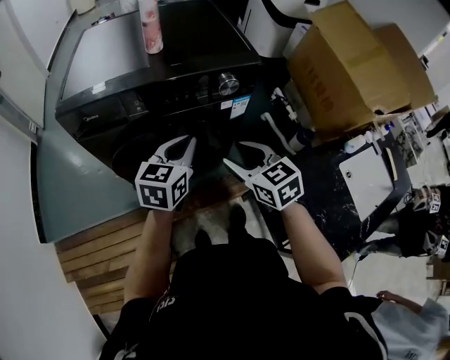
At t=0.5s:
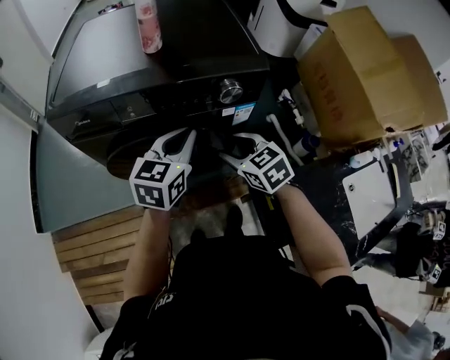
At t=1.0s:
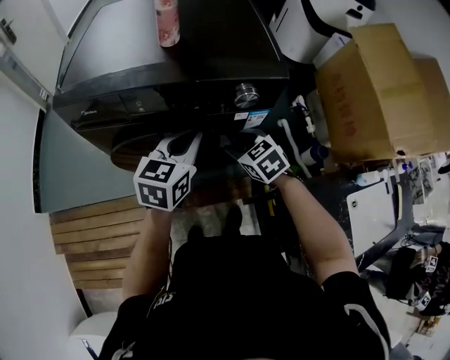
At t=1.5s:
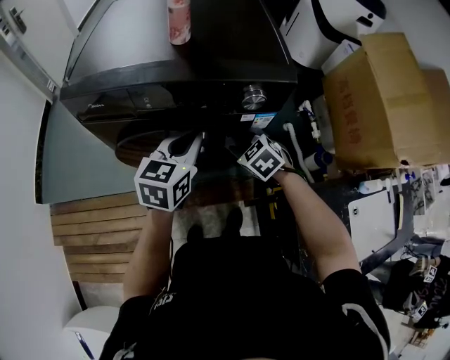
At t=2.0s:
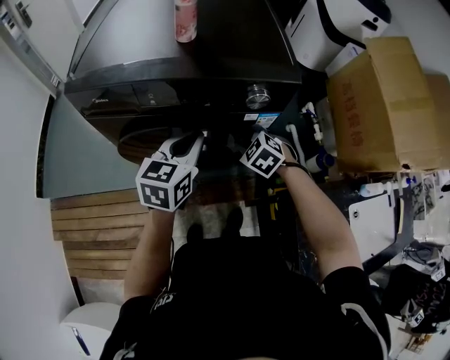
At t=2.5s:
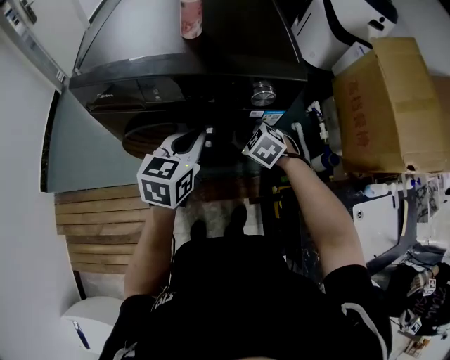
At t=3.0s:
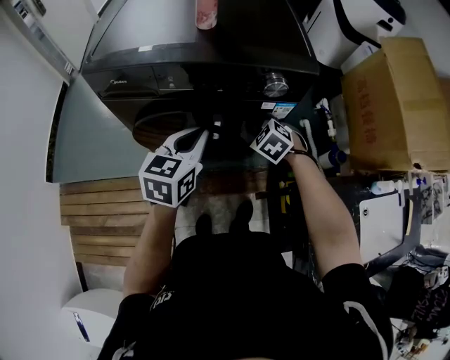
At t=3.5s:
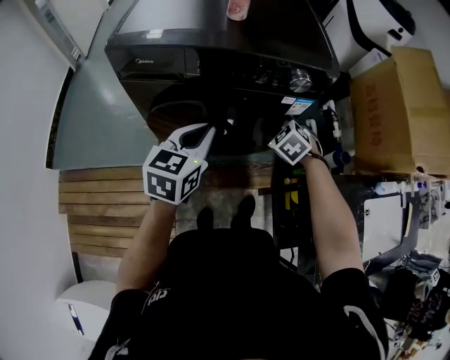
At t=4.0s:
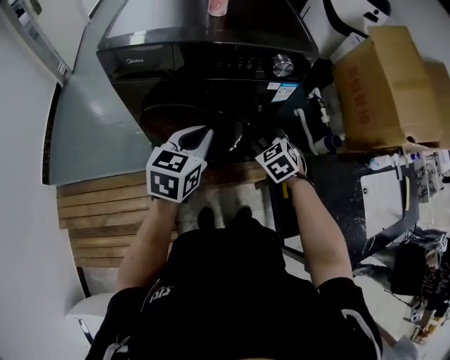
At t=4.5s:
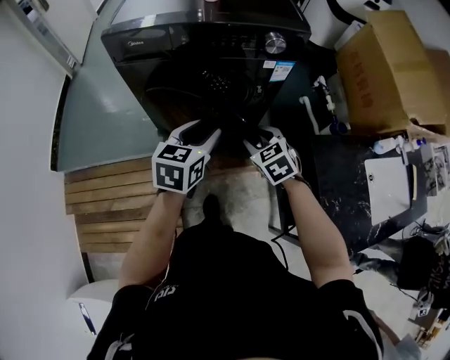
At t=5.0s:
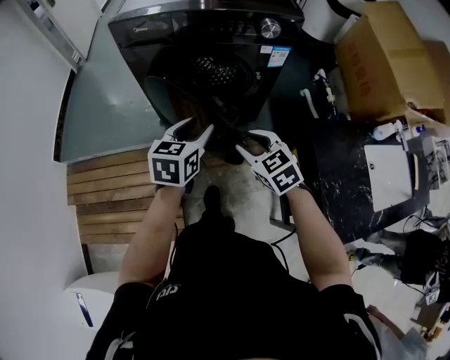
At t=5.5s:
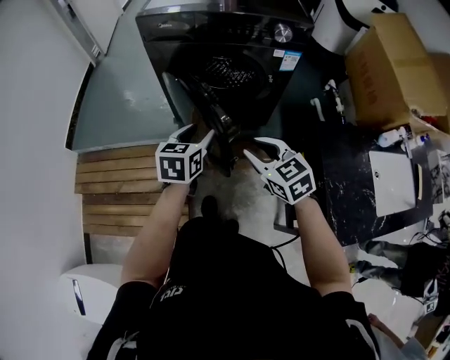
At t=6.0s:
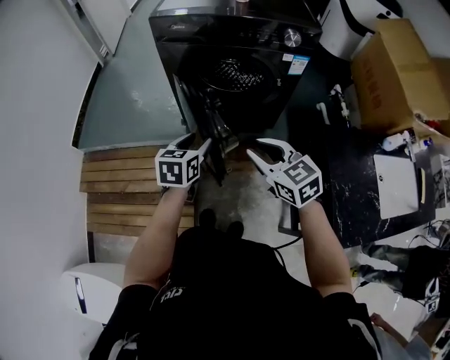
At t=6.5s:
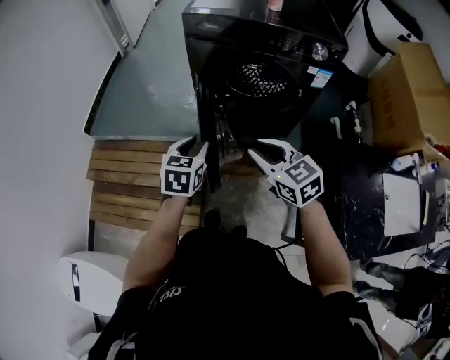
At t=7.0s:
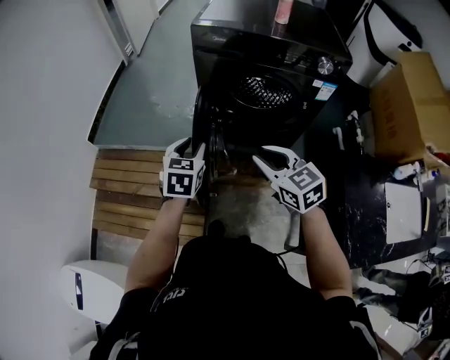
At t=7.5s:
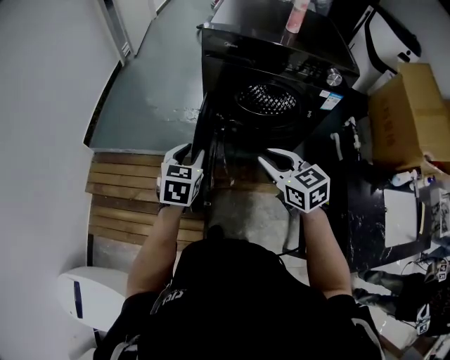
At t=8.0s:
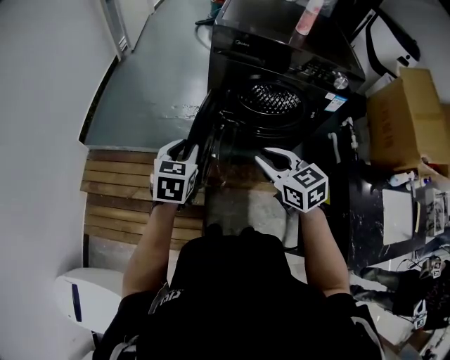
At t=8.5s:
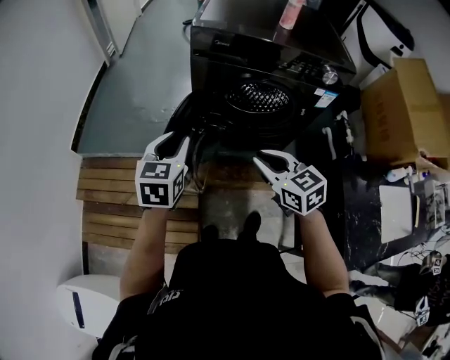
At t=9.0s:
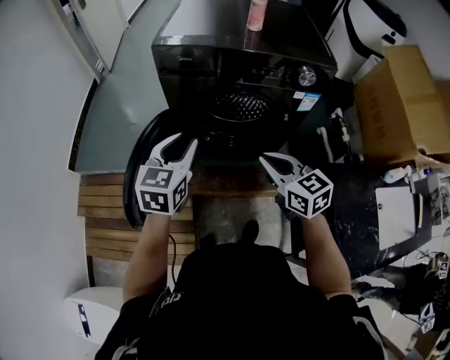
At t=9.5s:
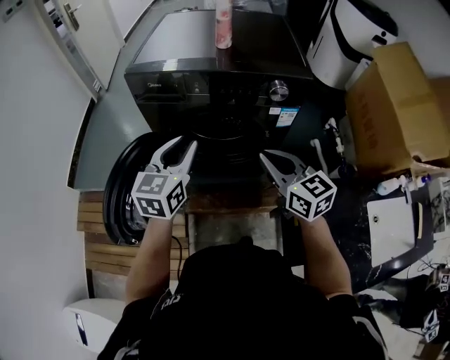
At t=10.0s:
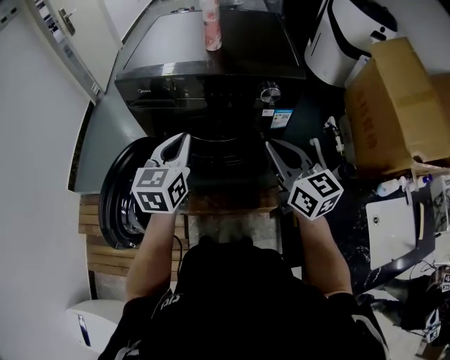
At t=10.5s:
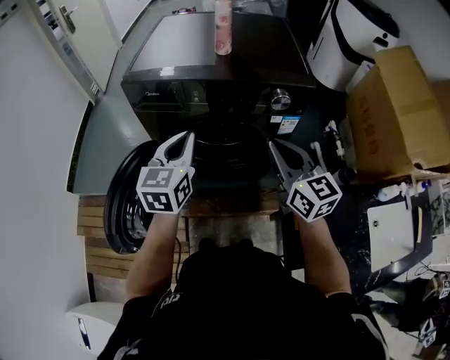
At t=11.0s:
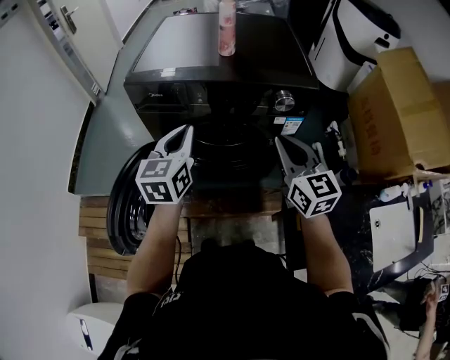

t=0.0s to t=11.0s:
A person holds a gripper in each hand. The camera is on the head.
t=0.0s to t=2.0s: The right gripper moves forward and downward, about 20 cm, swivels roughly 50 degrees, and closes up.
t=2.0s to t=3.5s: The left gripper heads to the left and backward, covering some 10 cm.
t=3.5s to t=5.5s: The right gripper is displaced backward by about 30 cm, and rotates some 40 degrees. Meanwhile the left gripper shifts about 20 cm backward, and opens.
t=5.5s to t=7.5s: The right gripper moves to the left and forward, about 15 cm; the left gripper heads to the left, covering about 20 cm.
t=7.5s to t=9.0s: The right gripper travels to the right by some 10 cm; the left gripper moves to the right, upward and forward, about 15 cm.
t=9.0s to t=11.0s: The left gripper travels forward and to the right by some 15 cm, and closes, while the right gripper shifts approximately 20 cm to the right, forward and upward, and rotates about 20 degrees.

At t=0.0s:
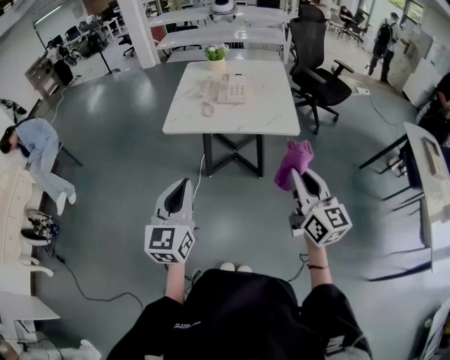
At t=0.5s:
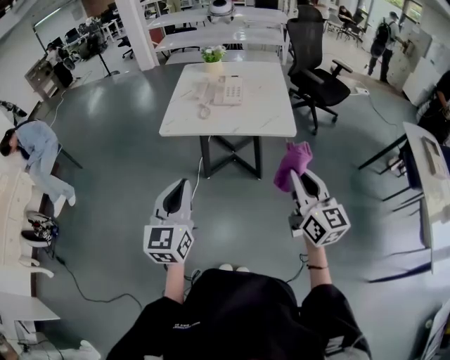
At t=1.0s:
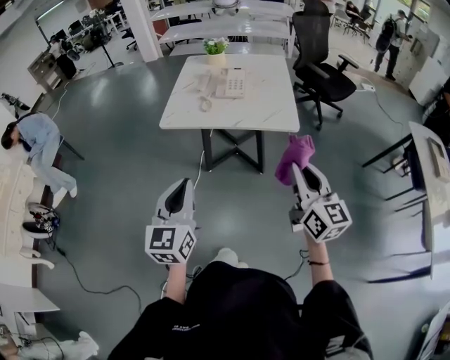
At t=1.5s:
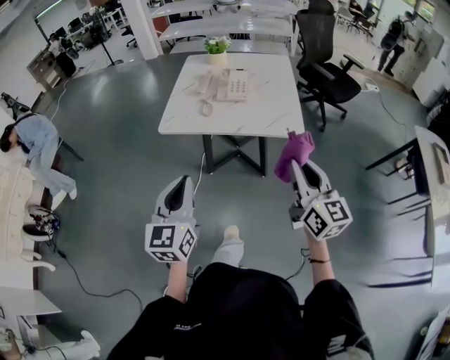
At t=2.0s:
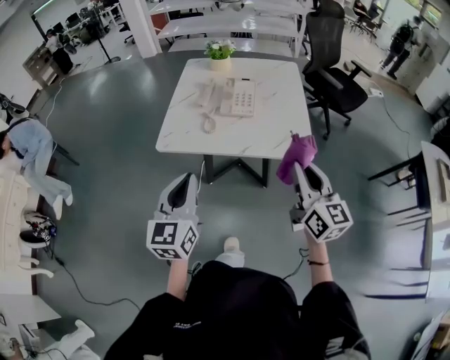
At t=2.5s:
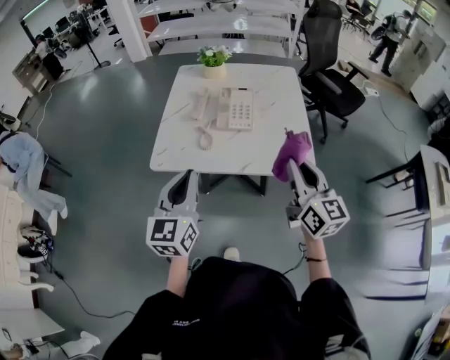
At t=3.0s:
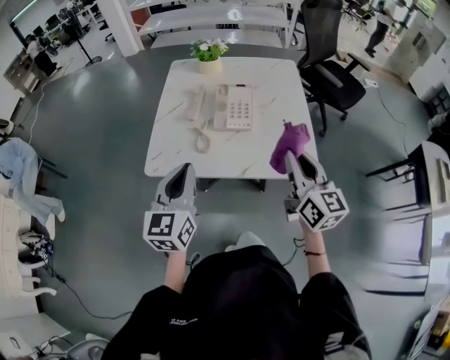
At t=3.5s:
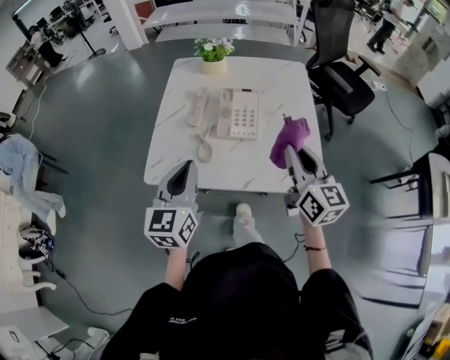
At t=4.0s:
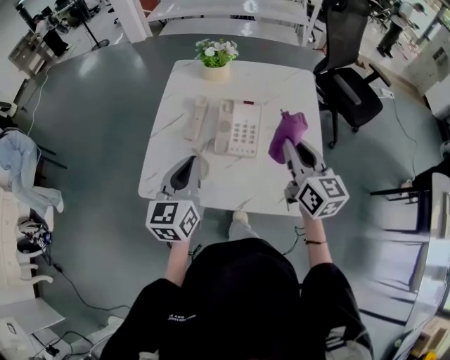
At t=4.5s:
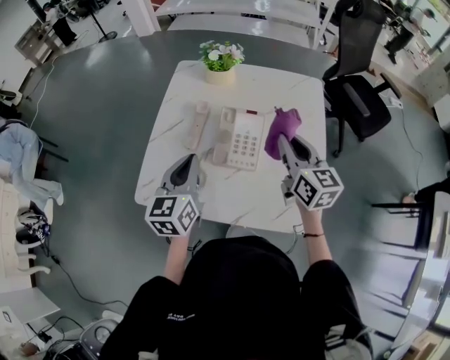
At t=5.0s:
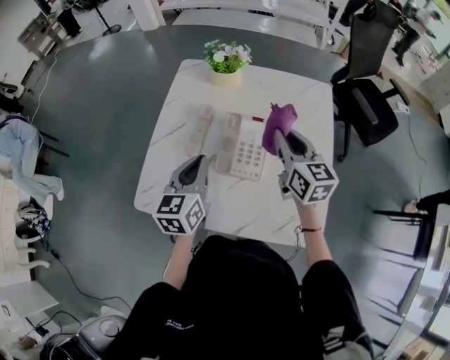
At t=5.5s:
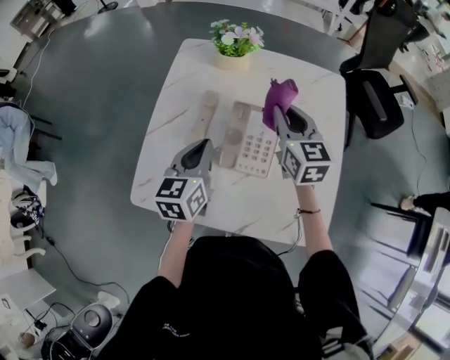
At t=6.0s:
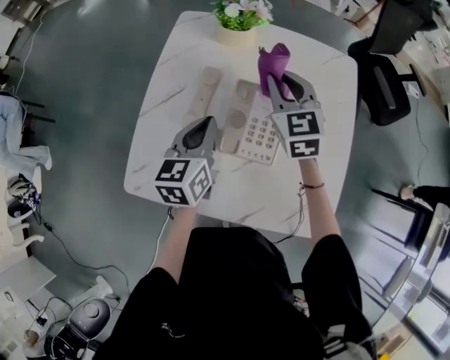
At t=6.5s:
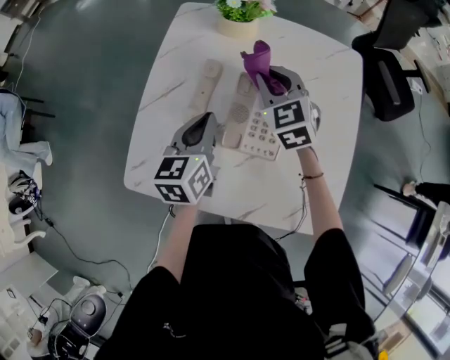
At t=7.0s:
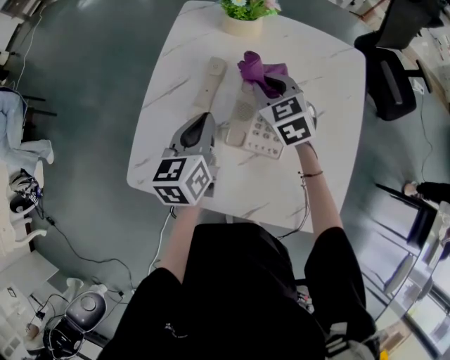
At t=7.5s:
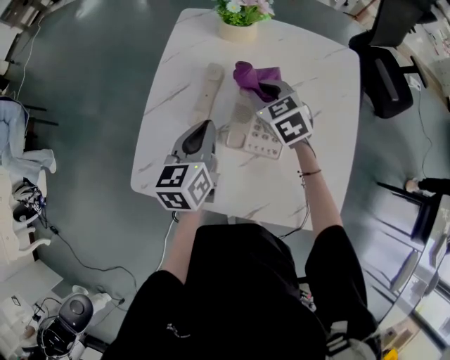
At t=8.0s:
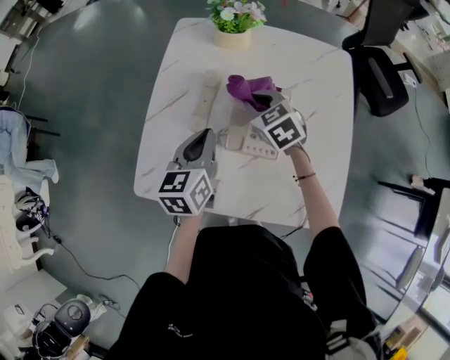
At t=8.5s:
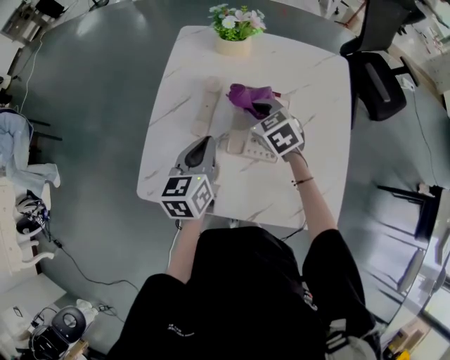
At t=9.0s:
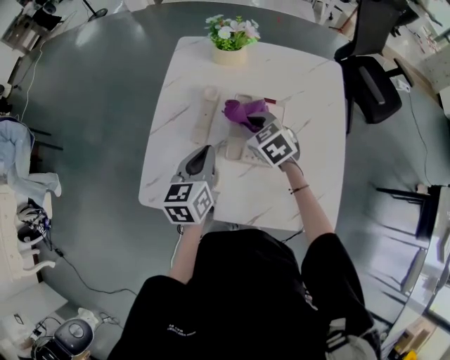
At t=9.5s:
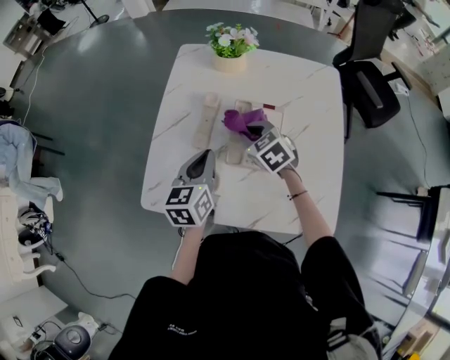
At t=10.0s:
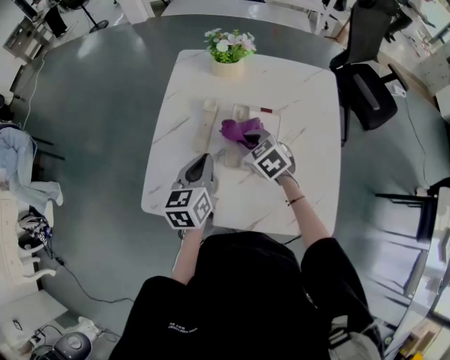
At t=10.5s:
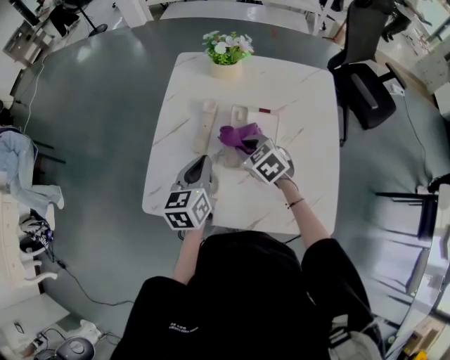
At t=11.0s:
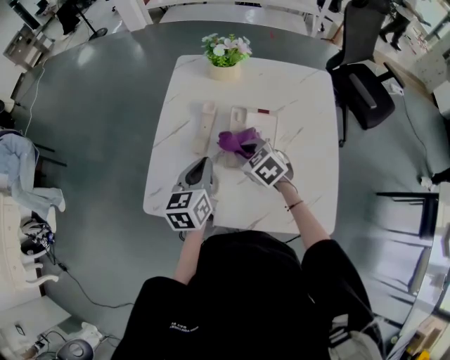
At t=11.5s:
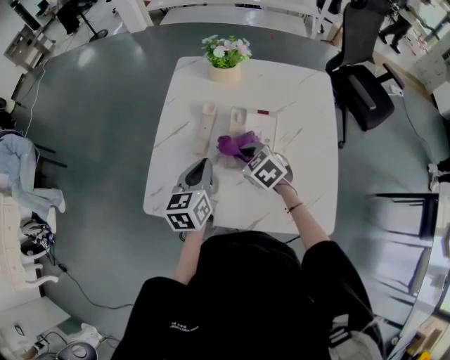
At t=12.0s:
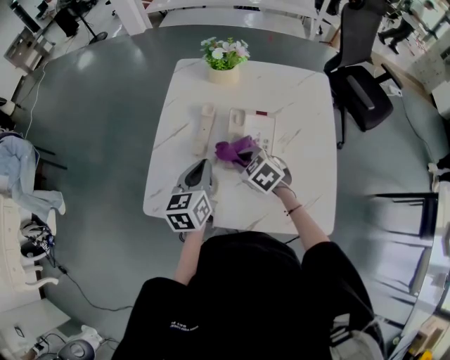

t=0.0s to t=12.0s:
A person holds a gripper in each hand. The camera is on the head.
t=0.0s to t=2.0s: The two grippers go approximately 20 cm forward.
t=2.0s to t=4.0s: Both grippers travel together forward, about 30 cm.
t=4.0s to t=6.0s: The left gripper is displaced forward and downward by roughly 20 cm, while the right gripper travels forward and to the left by some 25 cm, and rotates about 40 degrees.
t=6.0s to t=8.0s: The right gripper travels downward and to the left by some 10 cm, and rotates some 30 degrees.
t=8.0s to t=10.0s: The right gripper heads backward, covering roughly 5 cm.
t=10.0s to t=12.0s: The right gripper moves backward, approximately 5 cm.

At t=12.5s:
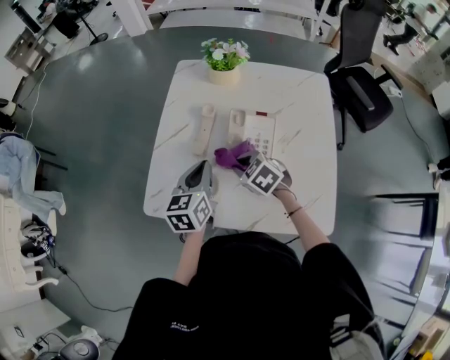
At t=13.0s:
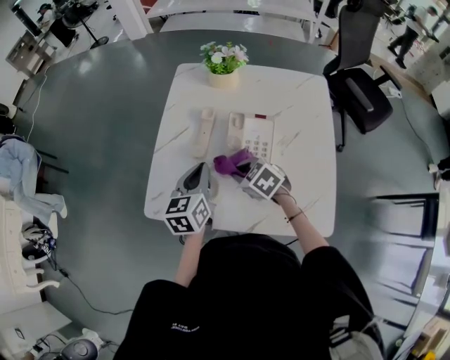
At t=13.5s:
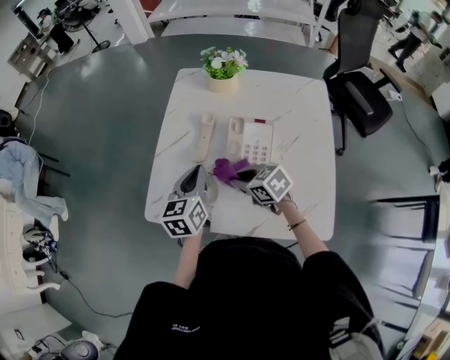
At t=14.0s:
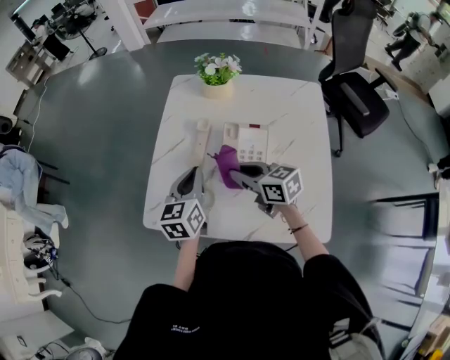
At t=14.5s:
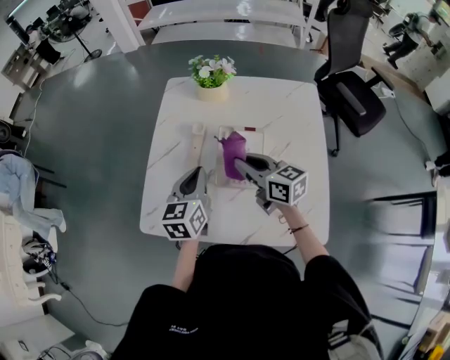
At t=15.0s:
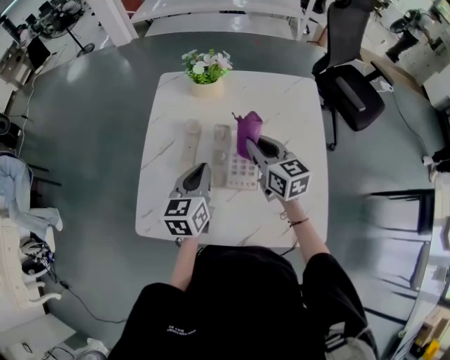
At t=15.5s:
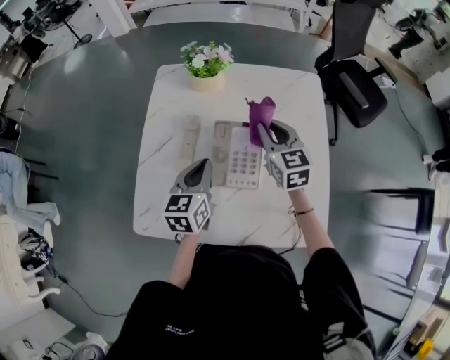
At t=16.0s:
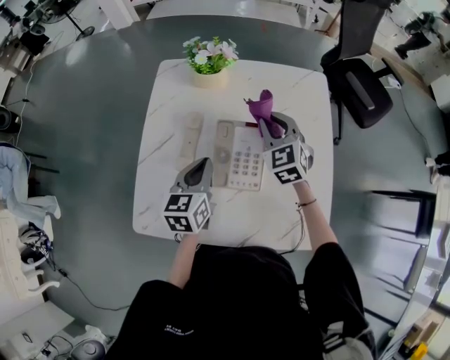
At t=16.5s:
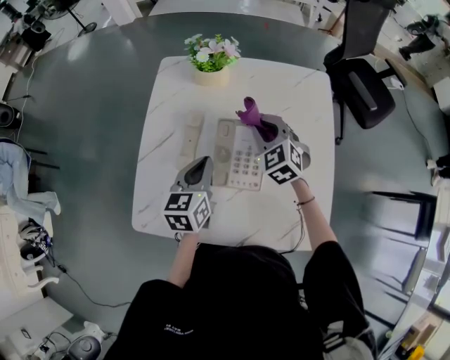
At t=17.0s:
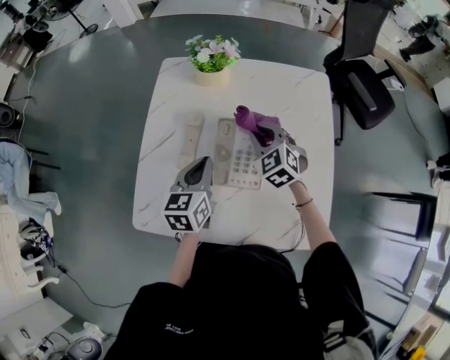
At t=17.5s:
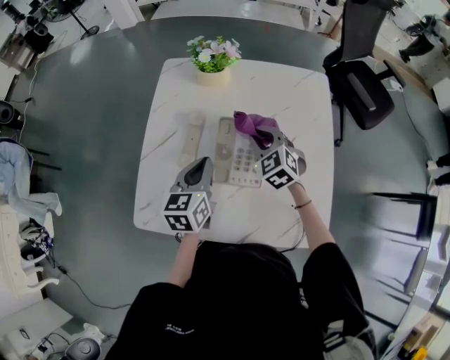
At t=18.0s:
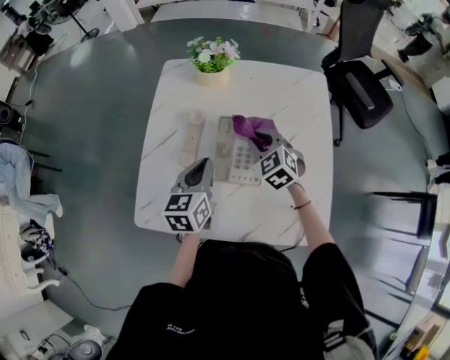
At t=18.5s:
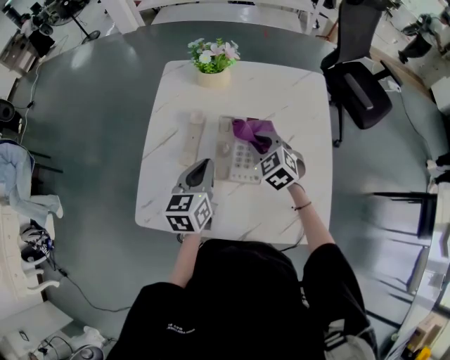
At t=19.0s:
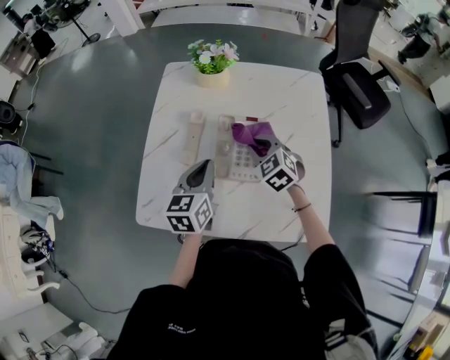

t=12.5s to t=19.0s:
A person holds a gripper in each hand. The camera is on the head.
t=12.5s to t=14.5s: The right gripper heads upward and to the right, covering approximately 15 cm, and angles its fingers upward, by some 40 degrees.
t=14.5s to t=17.0s: The right gripper is displaced forward, downward and to the right by approximately 15 cm, and rotates around the line of its fingers by approximately 50 degrees, counterclockwise from behind. The left gripper shifts by about 5 cm.
t=17.0s to t=19.0s: The right gripper goes approximately 5 cm backward.
